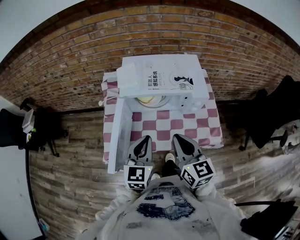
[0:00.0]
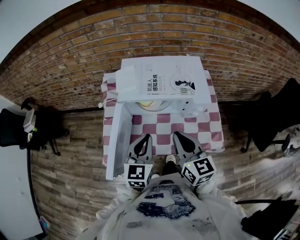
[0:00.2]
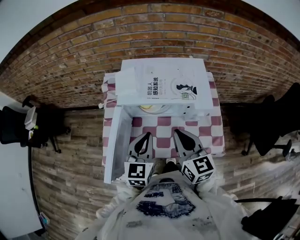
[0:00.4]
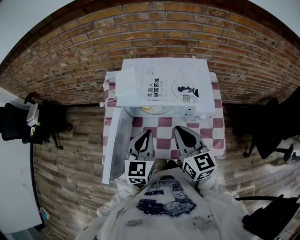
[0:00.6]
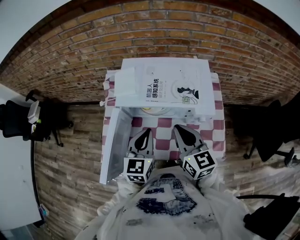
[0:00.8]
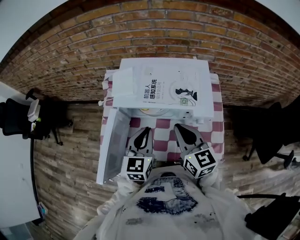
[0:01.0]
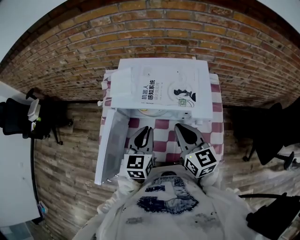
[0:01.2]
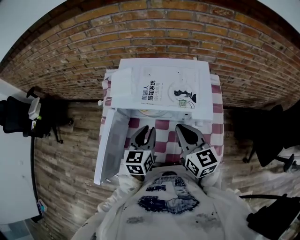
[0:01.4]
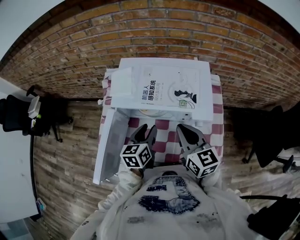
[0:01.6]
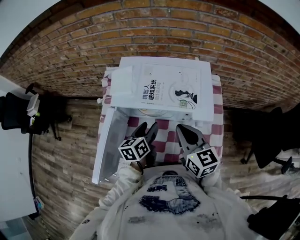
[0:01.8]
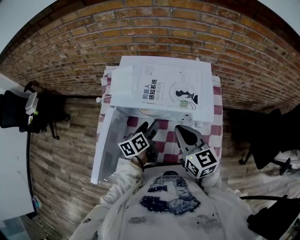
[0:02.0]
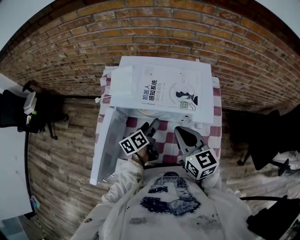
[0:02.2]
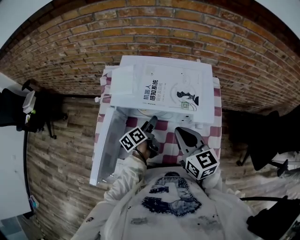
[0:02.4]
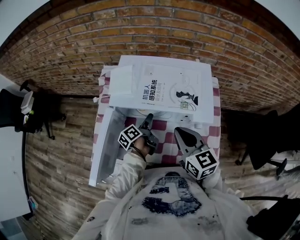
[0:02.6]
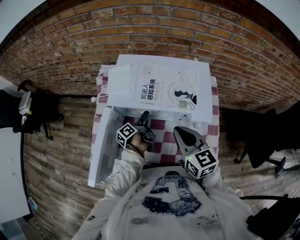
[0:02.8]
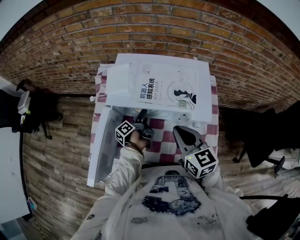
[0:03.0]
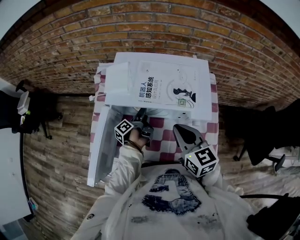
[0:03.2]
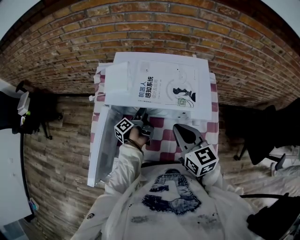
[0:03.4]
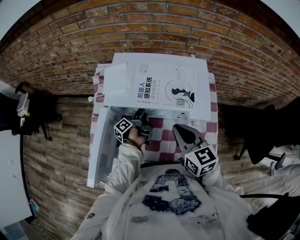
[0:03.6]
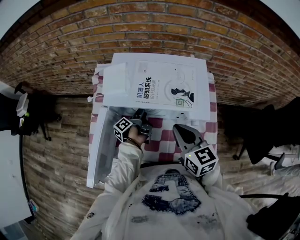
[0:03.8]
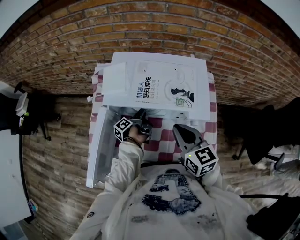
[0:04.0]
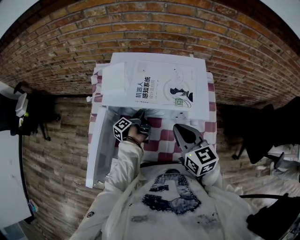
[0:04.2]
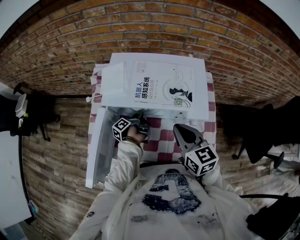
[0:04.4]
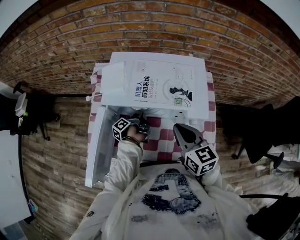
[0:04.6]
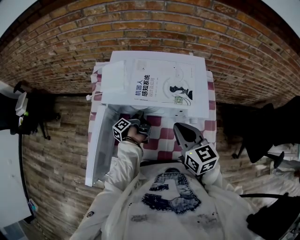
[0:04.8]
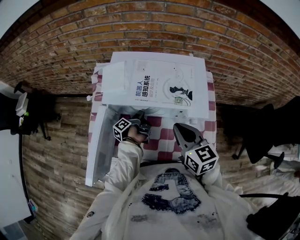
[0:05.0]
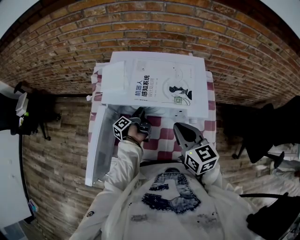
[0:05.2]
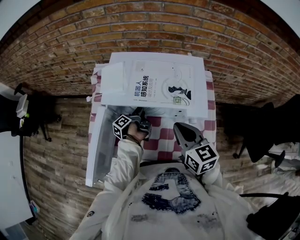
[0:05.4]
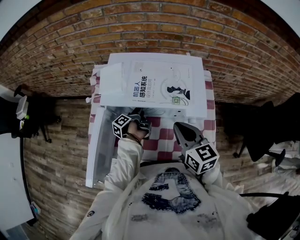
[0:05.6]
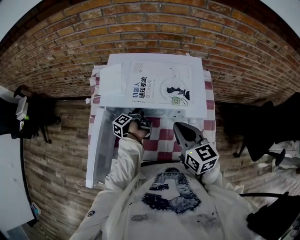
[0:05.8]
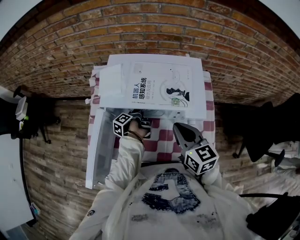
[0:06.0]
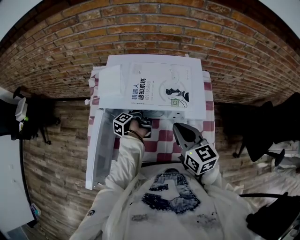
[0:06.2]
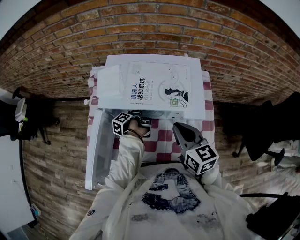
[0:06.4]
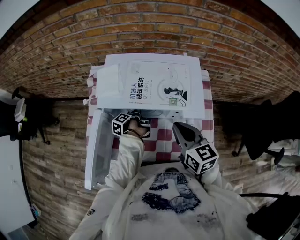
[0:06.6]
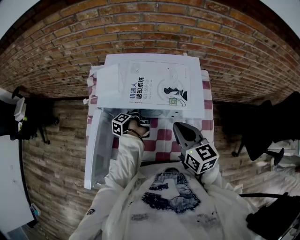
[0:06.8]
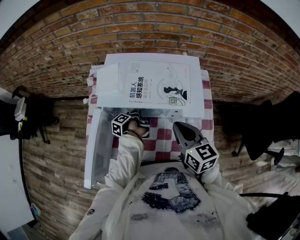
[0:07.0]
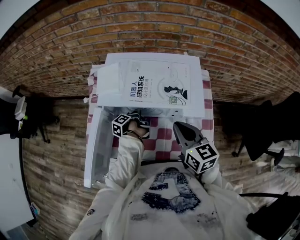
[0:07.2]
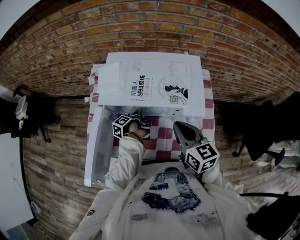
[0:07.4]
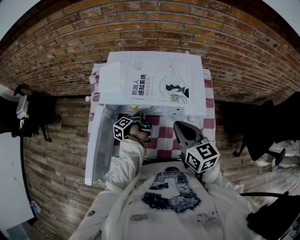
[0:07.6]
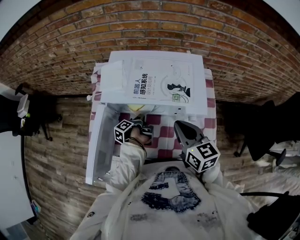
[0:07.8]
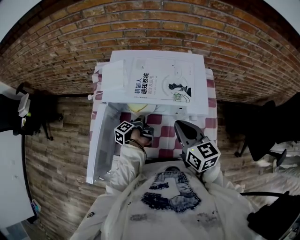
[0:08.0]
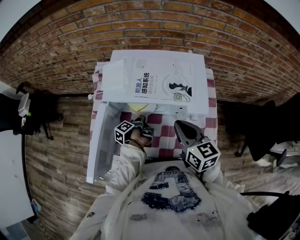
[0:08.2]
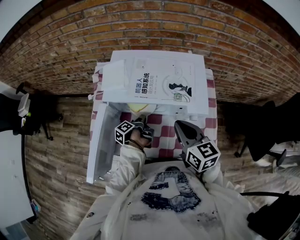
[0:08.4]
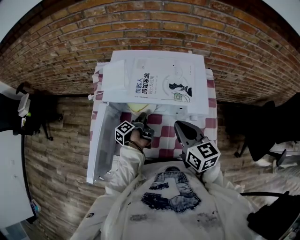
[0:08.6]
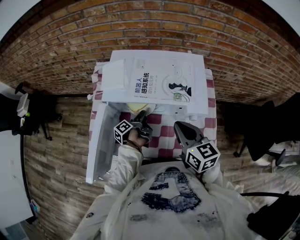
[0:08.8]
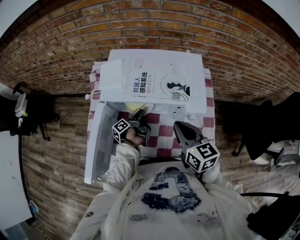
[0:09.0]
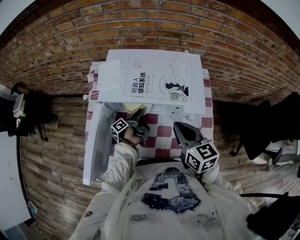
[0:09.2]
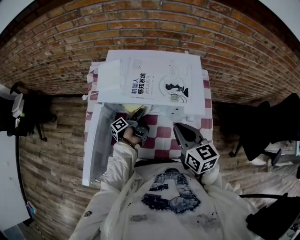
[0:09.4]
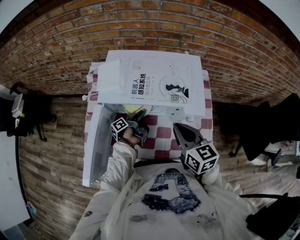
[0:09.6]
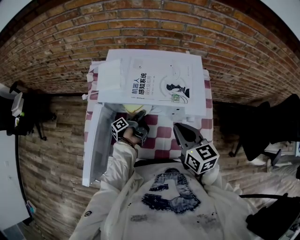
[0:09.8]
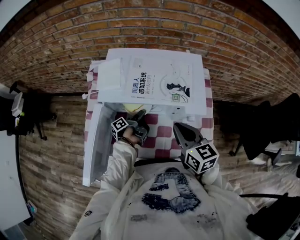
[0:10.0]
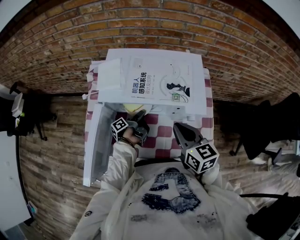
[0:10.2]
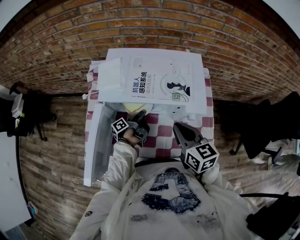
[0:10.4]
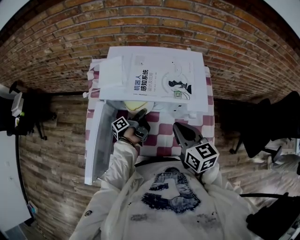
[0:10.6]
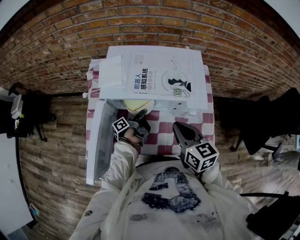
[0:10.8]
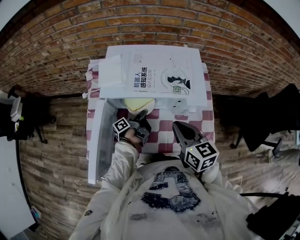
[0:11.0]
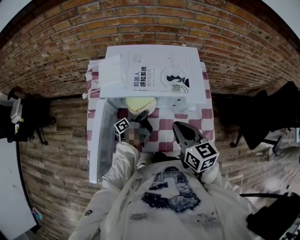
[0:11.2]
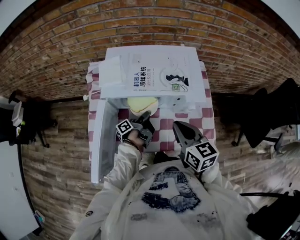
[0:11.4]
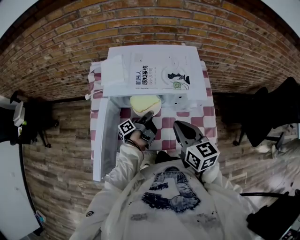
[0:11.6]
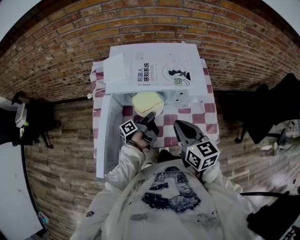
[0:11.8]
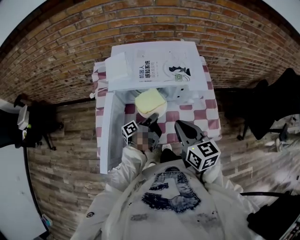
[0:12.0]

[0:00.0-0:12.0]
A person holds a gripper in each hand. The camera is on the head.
0:00.0 to 0:01.6: The right gripper changes place by some 15 cm.
0:10.4 to 0:12.0: The right gripper changes place by some 10 cm.

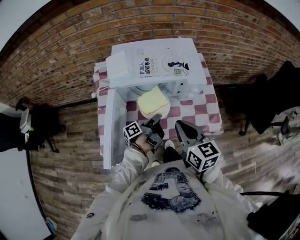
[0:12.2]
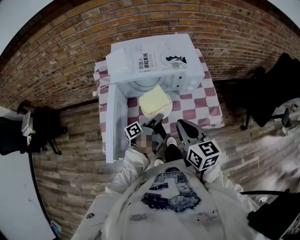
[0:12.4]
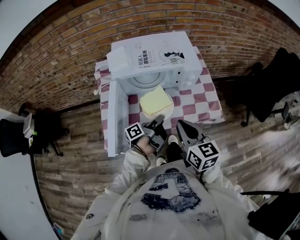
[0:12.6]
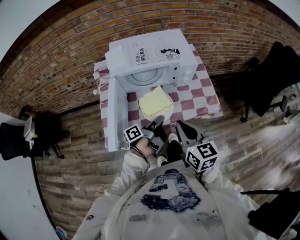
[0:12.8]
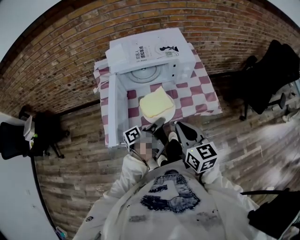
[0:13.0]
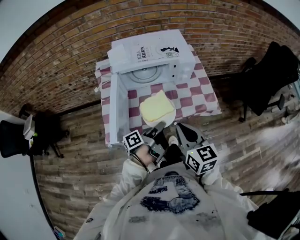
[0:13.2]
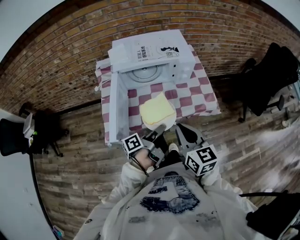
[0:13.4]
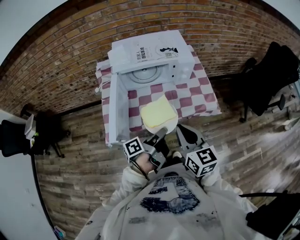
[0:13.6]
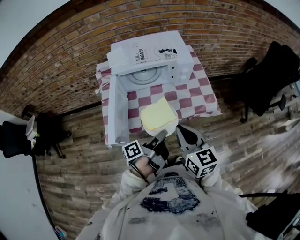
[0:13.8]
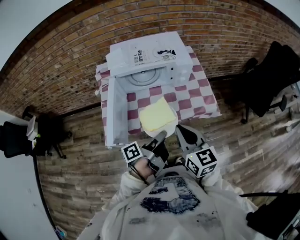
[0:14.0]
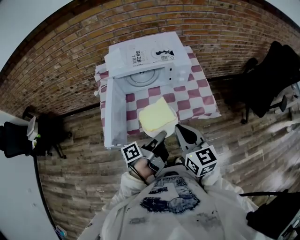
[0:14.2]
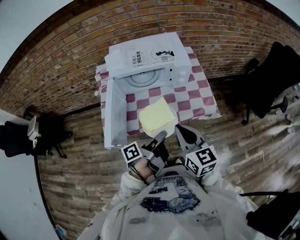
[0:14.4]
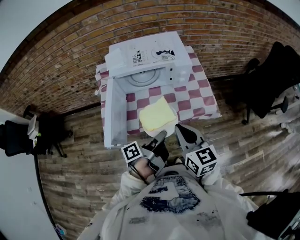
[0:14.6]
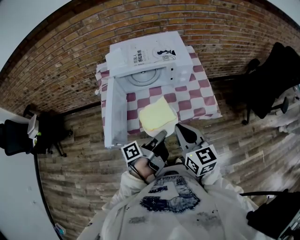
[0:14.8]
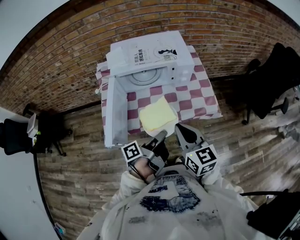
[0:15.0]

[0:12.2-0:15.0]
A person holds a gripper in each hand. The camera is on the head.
0:12.2 to 0:13.6: The right gripper shifts by some 15 cm.

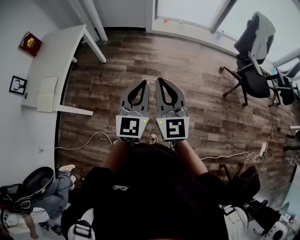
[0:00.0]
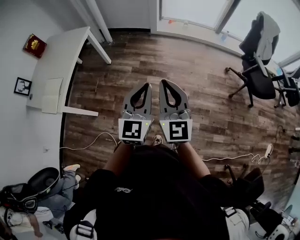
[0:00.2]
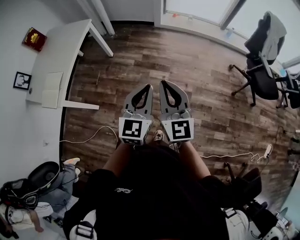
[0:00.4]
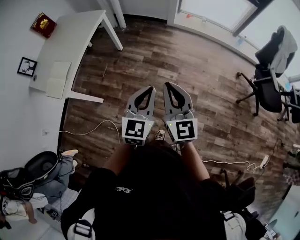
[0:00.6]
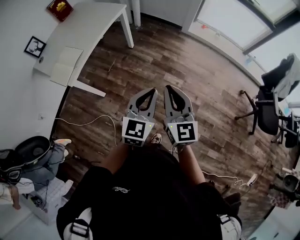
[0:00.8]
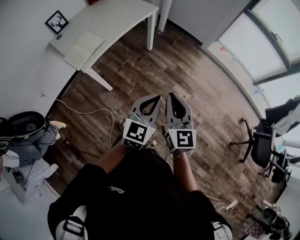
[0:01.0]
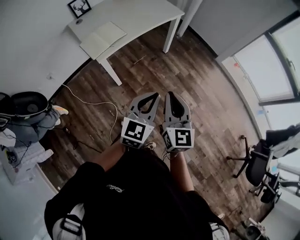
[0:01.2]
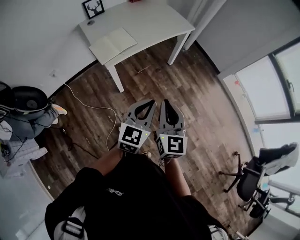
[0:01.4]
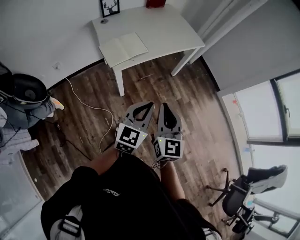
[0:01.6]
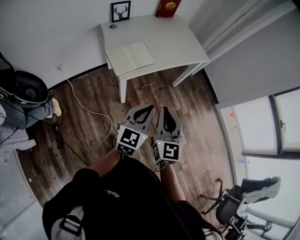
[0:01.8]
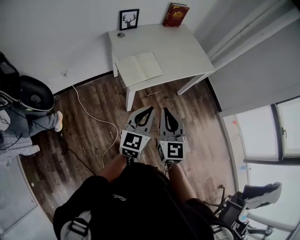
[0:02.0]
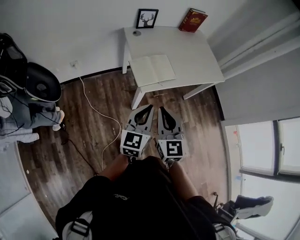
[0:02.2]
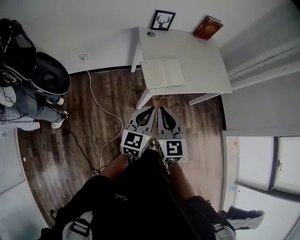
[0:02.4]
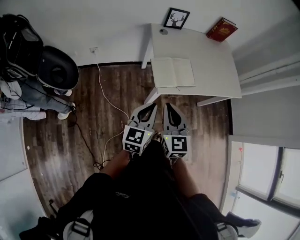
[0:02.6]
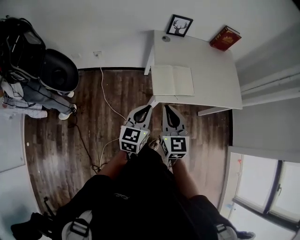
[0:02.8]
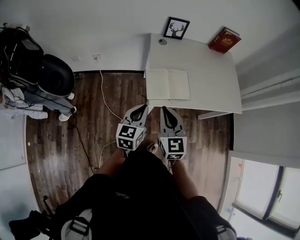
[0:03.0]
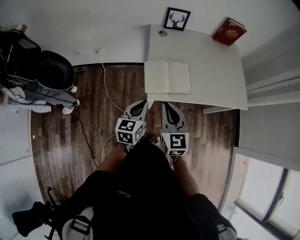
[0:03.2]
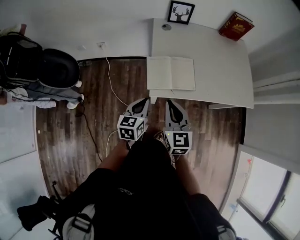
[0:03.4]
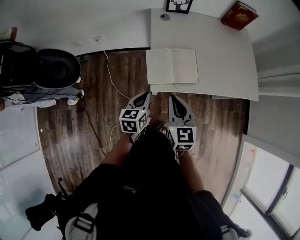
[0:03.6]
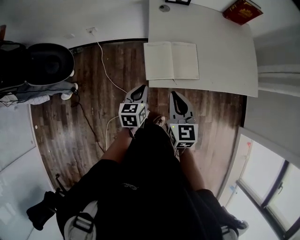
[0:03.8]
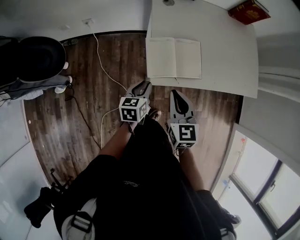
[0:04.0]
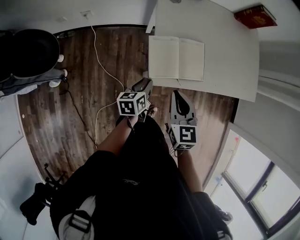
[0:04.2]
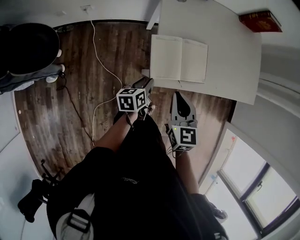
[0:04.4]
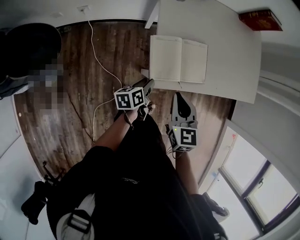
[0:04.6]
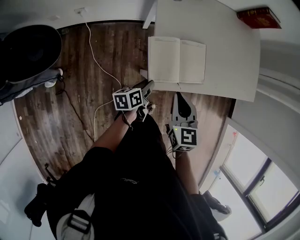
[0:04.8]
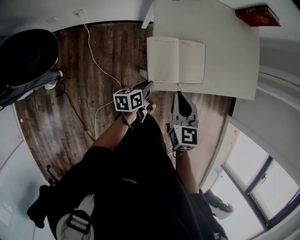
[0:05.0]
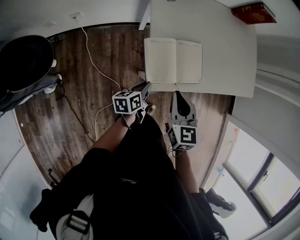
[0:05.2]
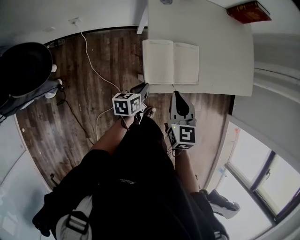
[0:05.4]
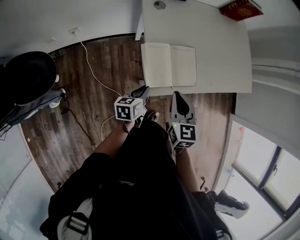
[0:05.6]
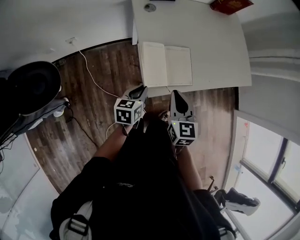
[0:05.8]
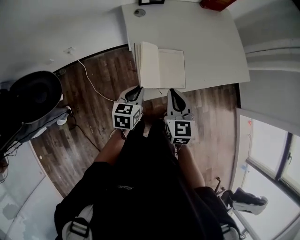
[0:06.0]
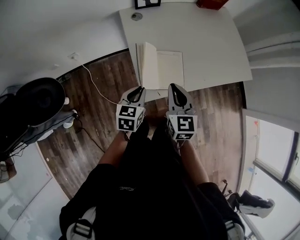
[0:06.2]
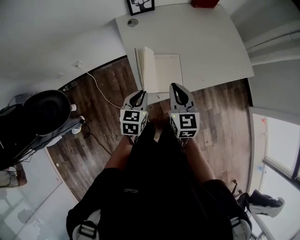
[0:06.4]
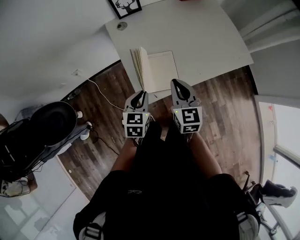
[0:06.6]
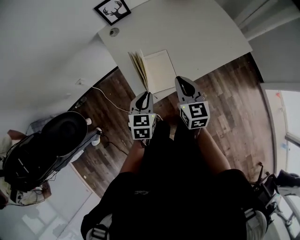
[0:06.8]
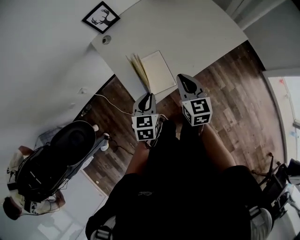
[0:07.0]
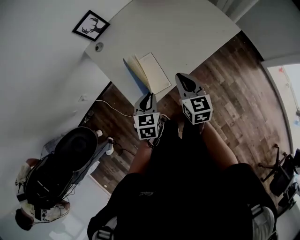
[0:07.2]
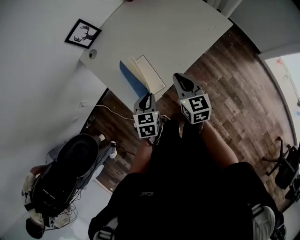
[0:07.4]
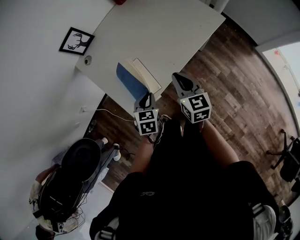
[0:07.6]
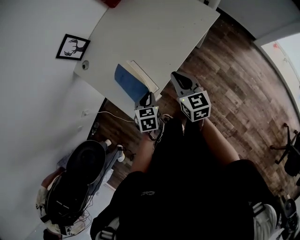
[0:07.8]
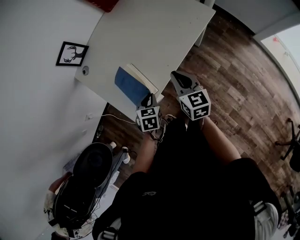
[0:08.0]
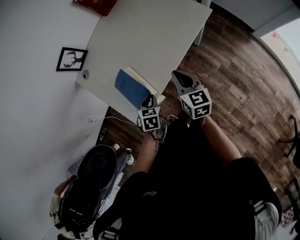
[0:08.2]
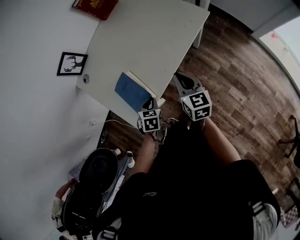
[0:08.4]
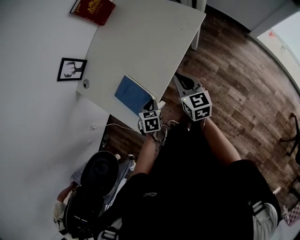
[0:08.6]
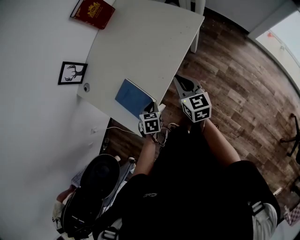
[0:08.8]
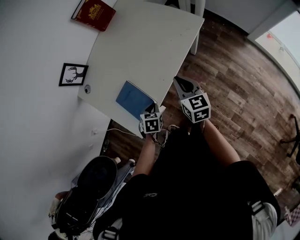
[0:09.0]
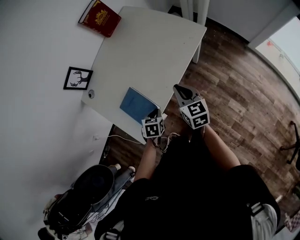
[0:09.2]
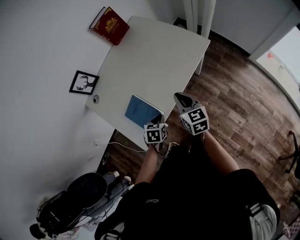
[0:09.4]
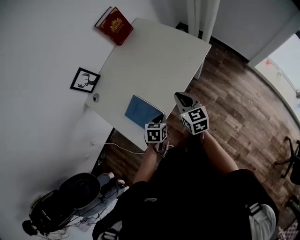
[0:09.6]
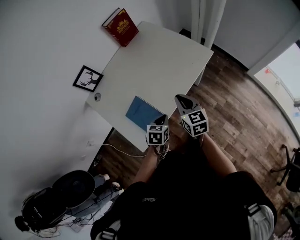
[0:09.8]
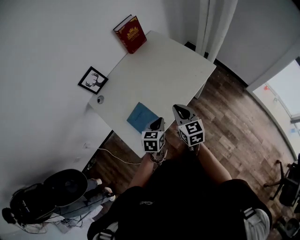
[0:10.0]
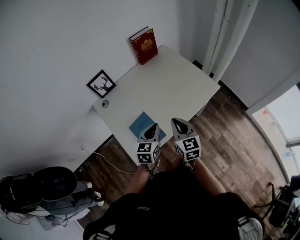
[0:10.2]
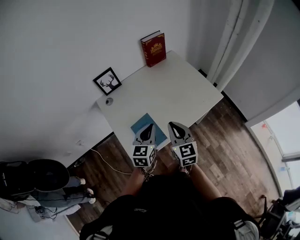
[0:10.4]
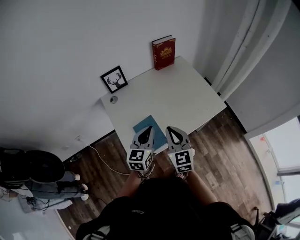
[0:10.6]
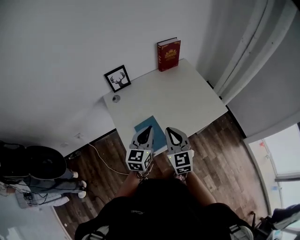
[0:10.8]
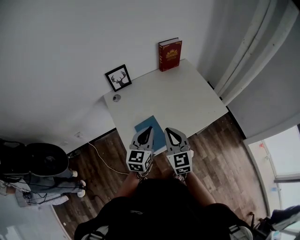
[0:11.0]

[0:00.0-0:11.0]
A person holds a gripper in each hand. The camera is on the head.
0:00.0 to 0:01.6: The right gripper shifts by roughly 35 cm, and changes its angle by some 40 degrees; the left gripper ends up some 35 cm from where it was, and turns by about 40 degrees.
0:01.6 to 0:03.2: The left gripper shifts by some 30 cm, and turns by some 40 degrees, while the right gripper shifts by about 30 cm, and swivels about 40 degrees.
0:03.2 to 0:04.8: The right gripper moves downward and forward, roughly 15 cm, and rotates some 20 degrees; the left gripper goes about 20 cm downward and forward, turns by roughly 50 degrees, and opens.
0:04.8 to 0:06.2: The left gripper moves upward, about 10 cm, rolls clockwise, seen from behind, by some 50 degrees, and closes up. Meanwhile the right gripper changes place by about 5 cm.
0:06.2 to 0:07.8: Both grippers move to the right, approximately 20 cm. The left gripper swivels some 30 degrees, while the right gripper swivels about 30 degrees.
0:07.8 to 0:09.4: The left gripper changes place by roughly 5 cm.
0:09.4 to 0:11.0: The right gripper moves to the left and upward, some 20 cm, and swivels roughly 40 degrees; the left gripper travels upward by roughly 25 cm, and tips its fingers upward by some 50 degrees.
